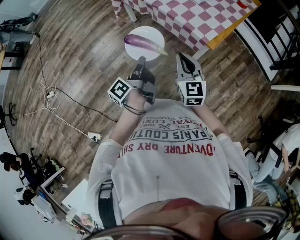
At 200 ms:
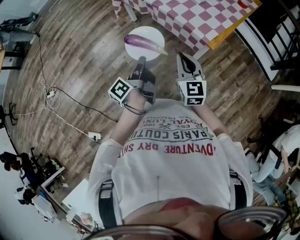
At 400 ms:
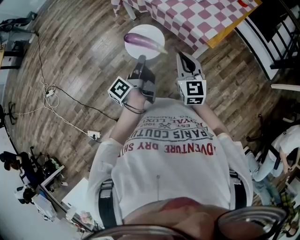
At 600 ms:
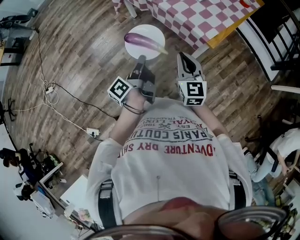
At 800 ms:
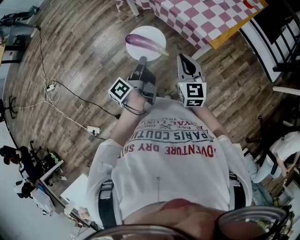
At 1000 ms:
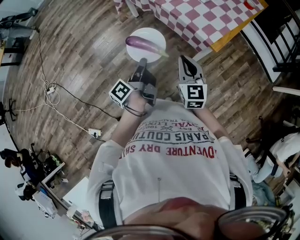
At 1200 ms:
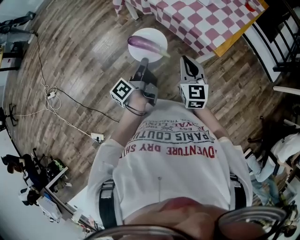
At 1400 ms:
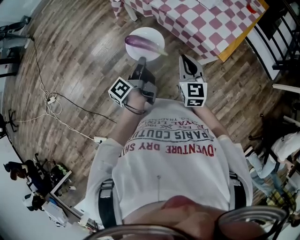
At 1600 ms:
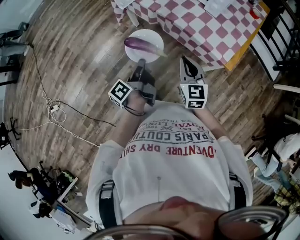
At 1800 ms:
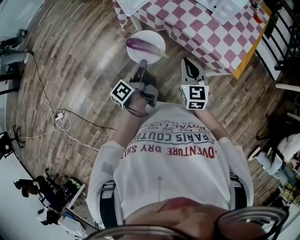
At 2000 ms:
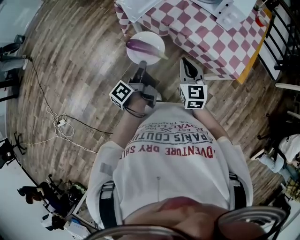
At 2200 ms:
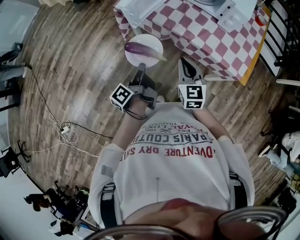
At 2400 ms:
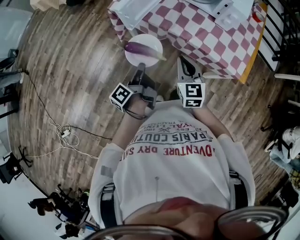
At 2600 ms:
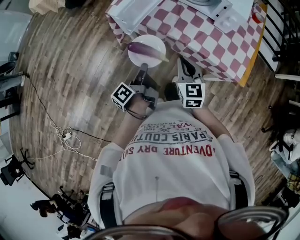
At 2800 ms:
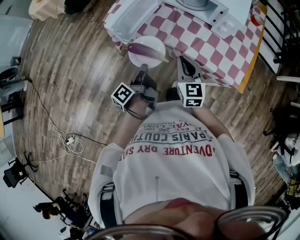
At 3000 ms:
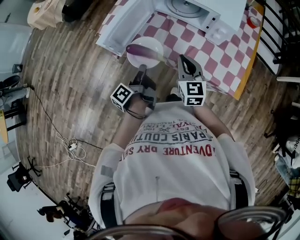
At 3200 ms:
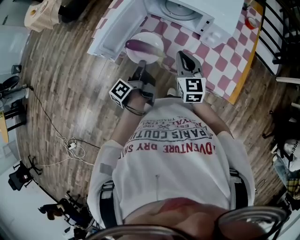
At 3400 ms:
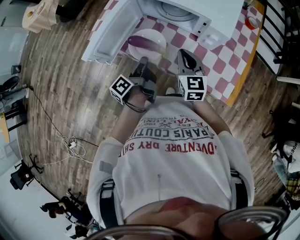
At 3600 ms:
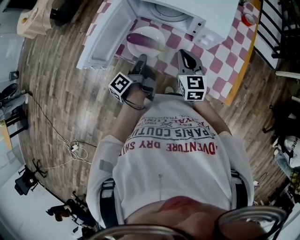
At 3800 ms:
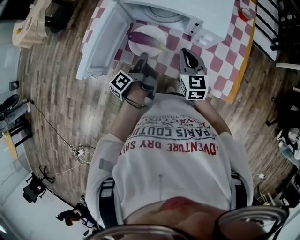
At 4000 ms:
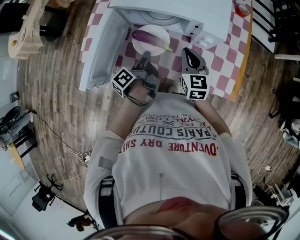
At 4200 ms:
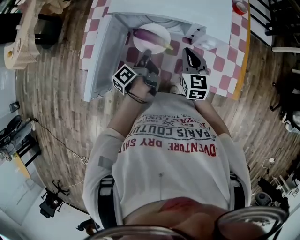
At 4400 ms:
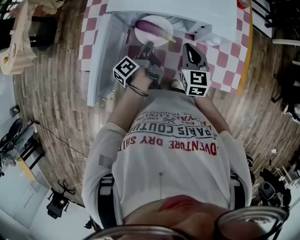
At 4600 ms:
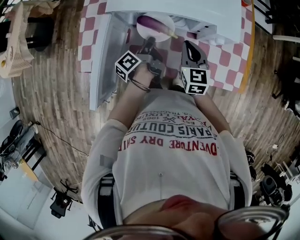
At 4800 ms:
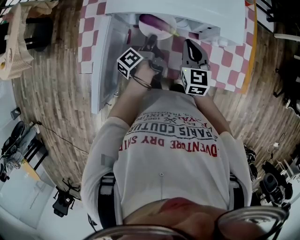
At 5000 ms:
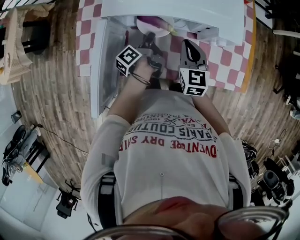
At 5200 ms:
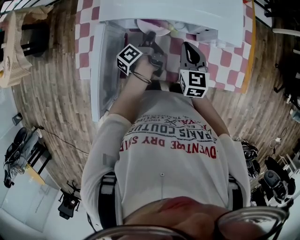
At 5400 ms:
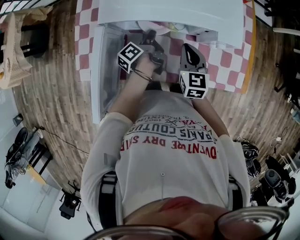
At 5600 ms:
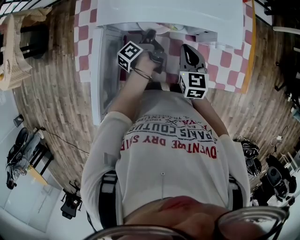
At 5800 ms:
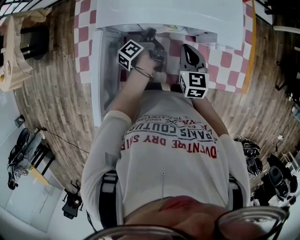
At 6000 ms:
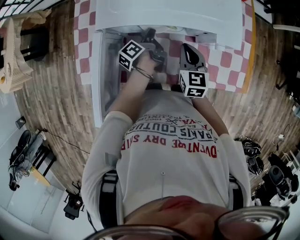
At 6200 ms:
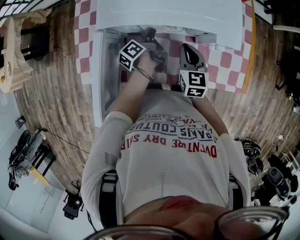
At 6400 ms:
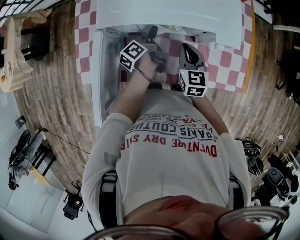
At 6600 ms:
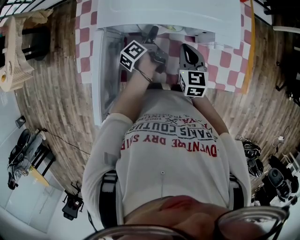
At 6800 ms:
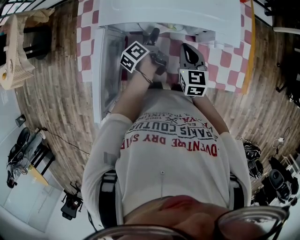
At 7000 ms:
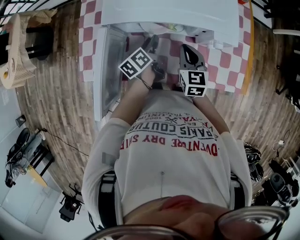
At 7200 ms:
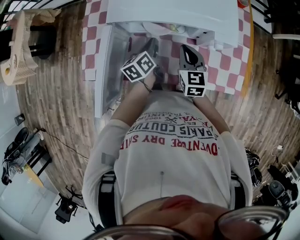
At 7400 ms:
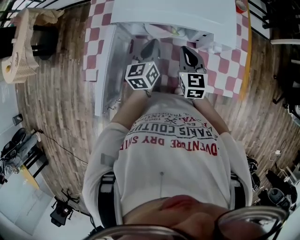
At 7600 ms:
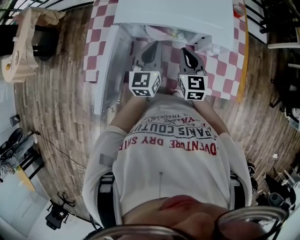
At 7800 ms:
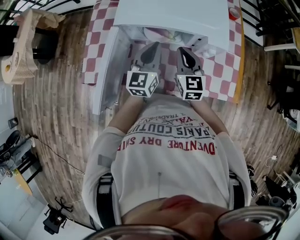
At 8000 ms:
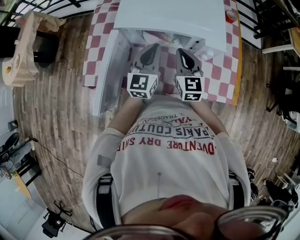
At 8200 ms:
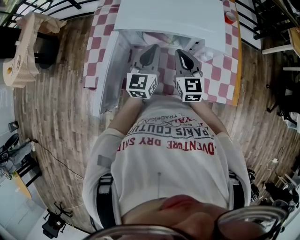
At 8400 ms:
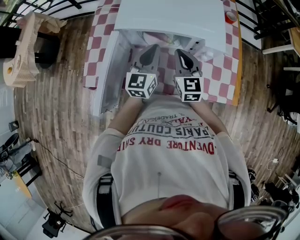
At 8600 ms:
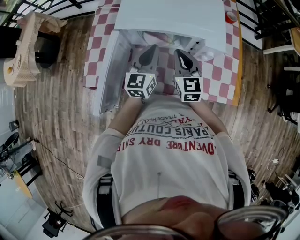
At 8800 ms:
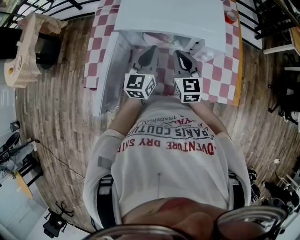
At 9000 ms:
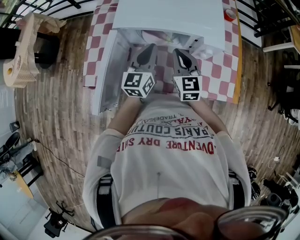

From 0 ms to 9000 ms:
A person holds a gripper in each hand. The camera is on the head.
From 0 ms to 1600 ms: The right gripper moves roughly 20 cm.
From 1600 ms to 3000 ms: The right gripper changes place by roughly 25 cm.
From 3000 ms to 4400 ms: The right gripper ends up approximately 20 cm from where it was, and rotates some 20 degrees.
From 4400 ms to 6000 ms: The right gripper ends up approximately 5 cm from where it was.
From 6000 ms to 7600 ms: The right gripper goes approximately 5 cm upward.

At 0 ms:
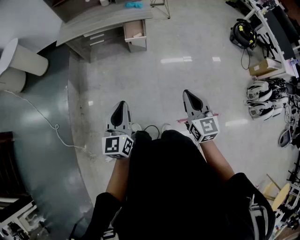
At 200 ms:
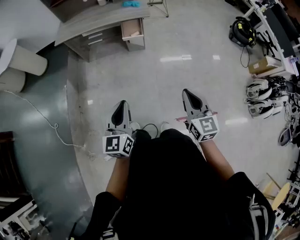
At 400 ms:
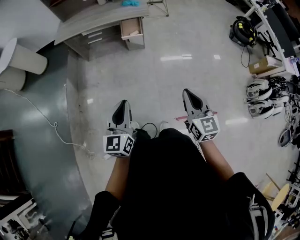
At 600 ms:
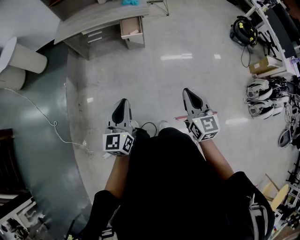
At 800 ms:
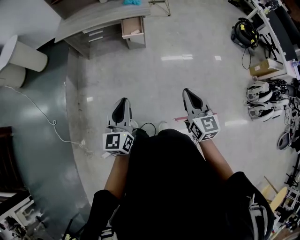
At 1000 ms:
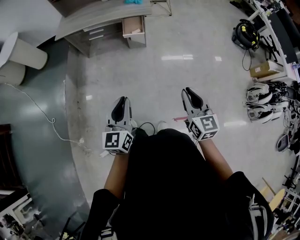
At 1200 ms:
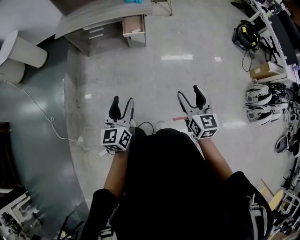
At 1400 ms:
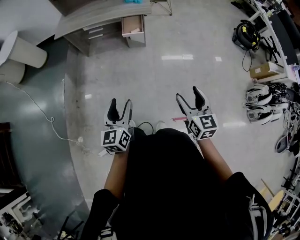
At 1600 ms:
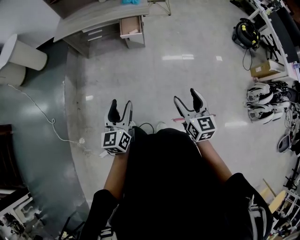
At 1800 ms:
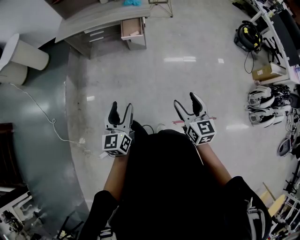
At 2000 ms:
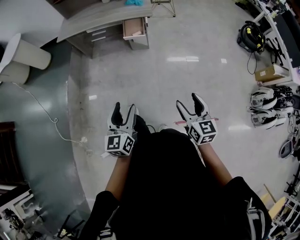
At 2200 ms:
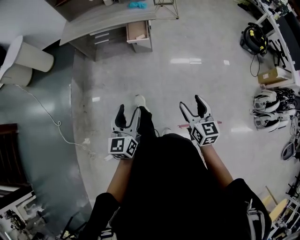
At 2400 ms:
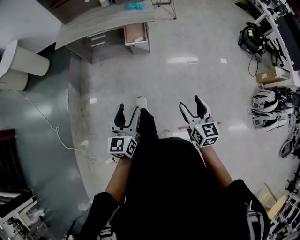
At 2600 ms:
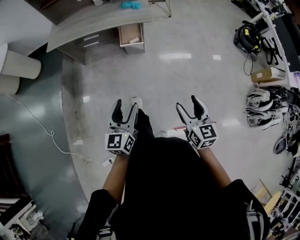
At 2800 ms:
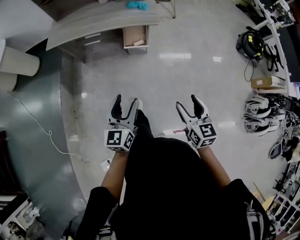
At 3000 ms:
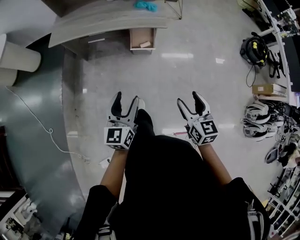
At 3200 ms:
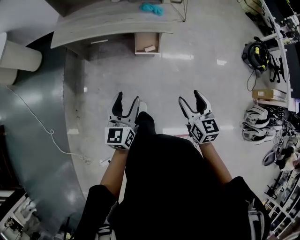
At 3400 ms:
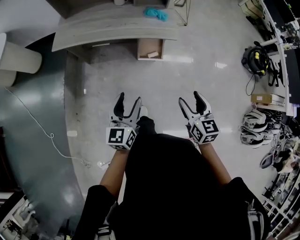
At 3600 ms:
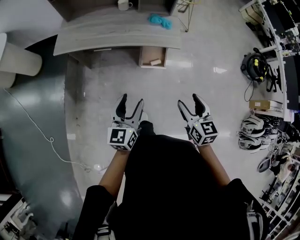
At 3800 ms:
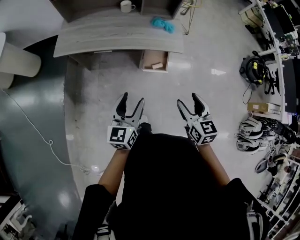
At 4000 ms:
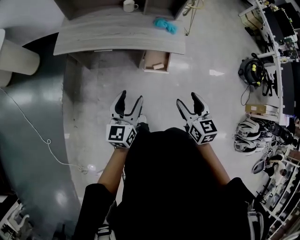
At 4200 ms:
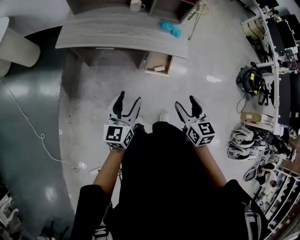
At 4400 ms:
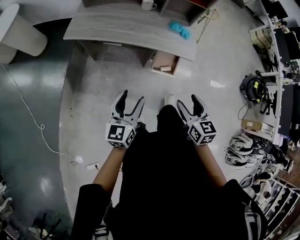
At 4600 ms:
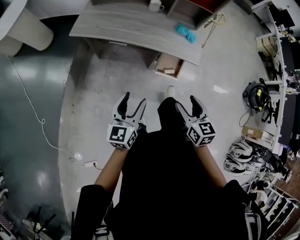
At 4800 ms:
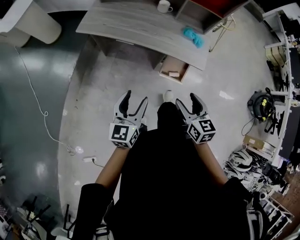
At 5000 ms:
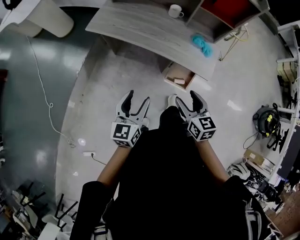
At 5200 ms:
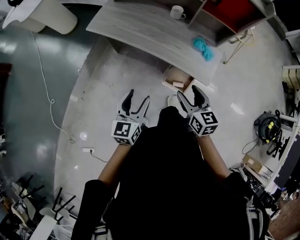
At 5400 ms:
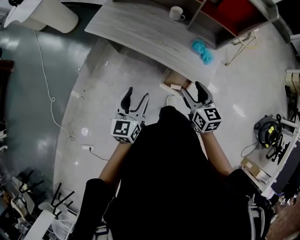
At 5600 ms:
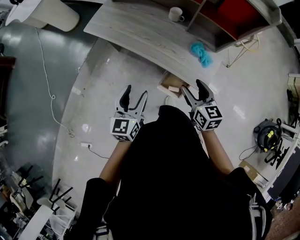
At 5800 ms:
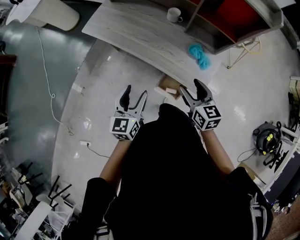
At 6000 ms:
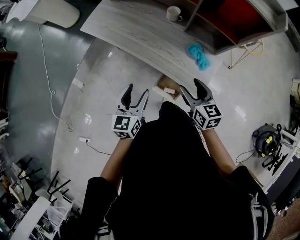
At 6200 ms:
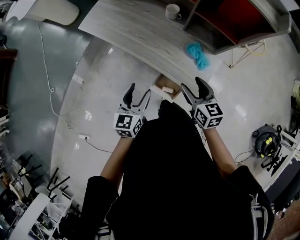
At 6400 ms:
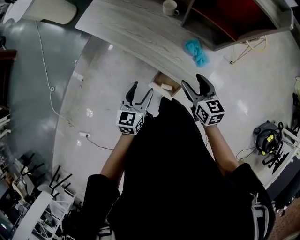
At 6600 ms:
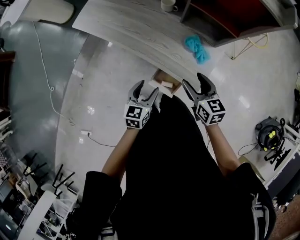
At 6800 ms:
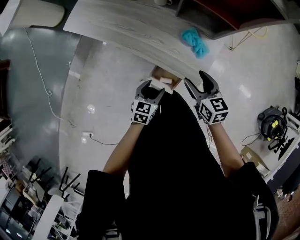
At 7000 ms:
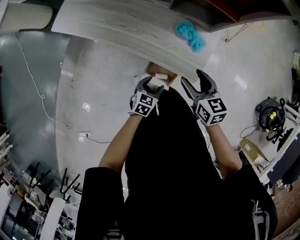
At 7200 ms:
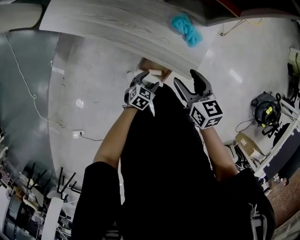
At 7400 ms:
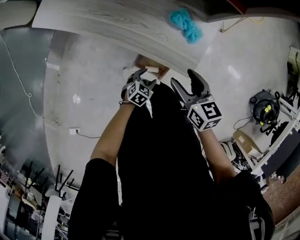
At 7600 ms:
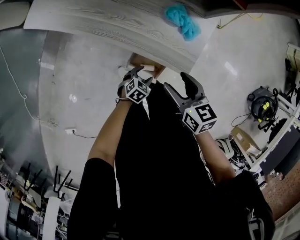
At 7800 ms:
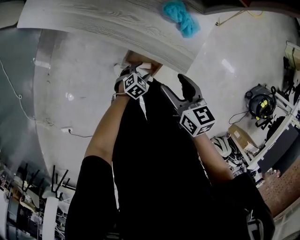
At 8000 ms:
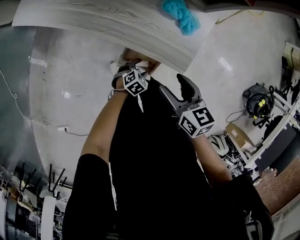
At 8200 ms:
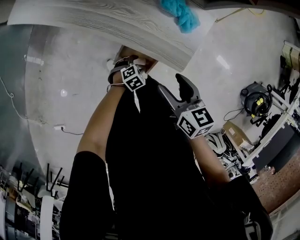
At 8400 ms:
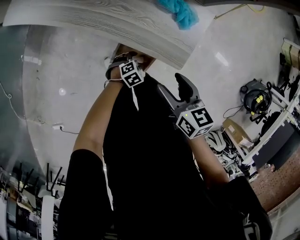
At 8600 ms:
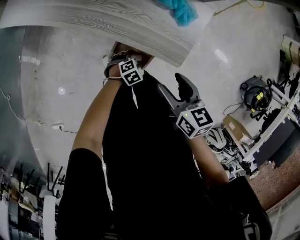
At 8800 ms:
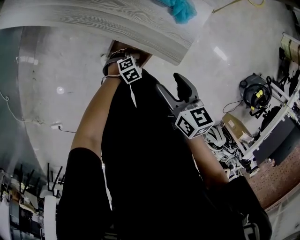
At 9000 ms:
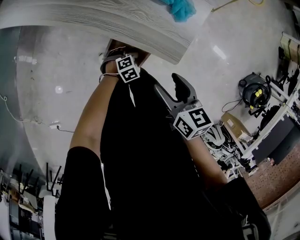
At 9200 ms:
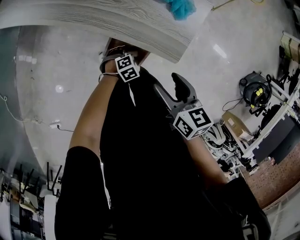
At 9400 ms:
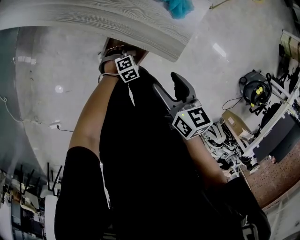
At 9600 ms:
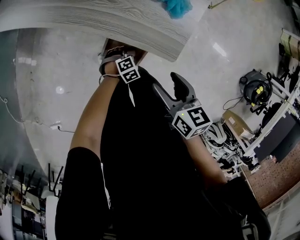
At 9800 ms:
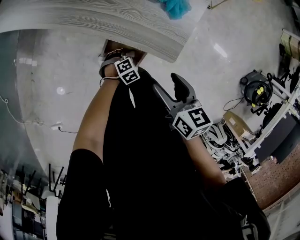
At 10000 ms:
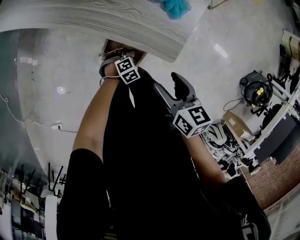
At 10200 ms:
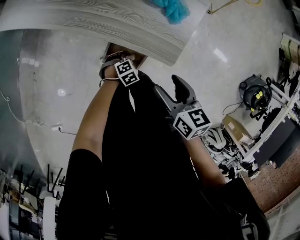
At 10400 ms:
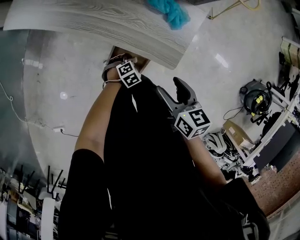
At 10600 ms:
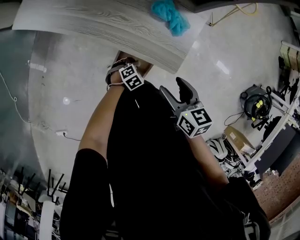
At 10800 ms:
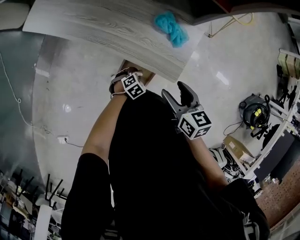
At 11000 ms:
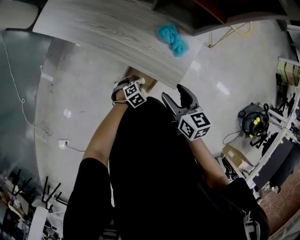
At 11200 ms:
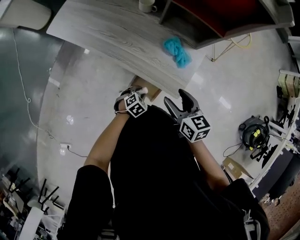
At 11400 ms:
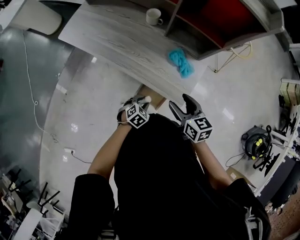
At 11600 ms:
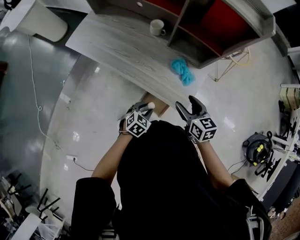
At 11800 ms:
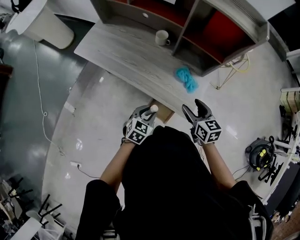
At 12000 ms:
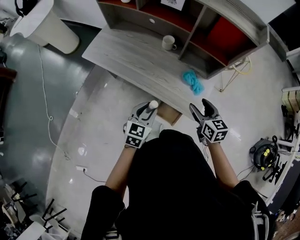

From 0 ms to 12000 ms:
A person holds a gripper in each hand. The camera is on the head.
From 0 ms to 1600 ms: Both grippers move to the right and downward, roughly 10 cm. The right gripper opens its fingers. The left gripper opens up.
From 1600 ms to 3000 ms: The two grippers go roughly 35 cm forward.
From 3000 ms to 4400 ms: The grippers both shift forward and to the left by about 25 cm.
From 4400 ms to 6000 ms: The right gripper changes place by roughly 40 cm, and swivels roughly 30 degrees; the left gripper shifts by some 30 cm, and turns by some 30 degrees.
From 6000 ms to 7600 ms: The left gripper heads downward and to the right, covering approximately 40 cm, and angles its fingers downward, by some 40 degrees, while the right gripper heads downward, covering about 15 cm.
From 7600 ms to 9000 ms: The right gripper goes some 5 cm downward. The left gripper moves downward, some 10 cm, and swivels roughly 30 degrees.
From 9000 ms to 10400 ms: The left gripper closes.
From 10400 ms to 12000 ms: The right gripper travels upward by approximately 20 cm, and rotates approximately 20 degrees, while the left gripper is displaced upward by roughly 50 cm, and angles its fingers upward, by some 50 degrees.

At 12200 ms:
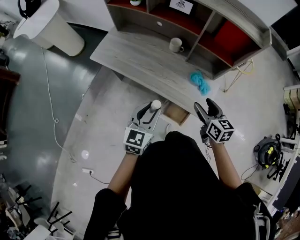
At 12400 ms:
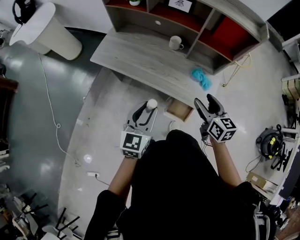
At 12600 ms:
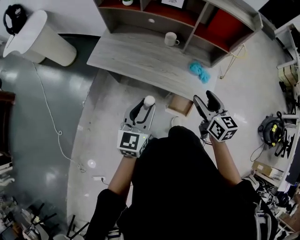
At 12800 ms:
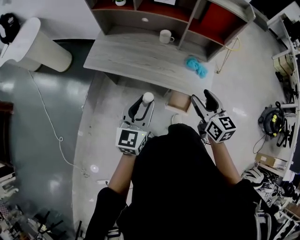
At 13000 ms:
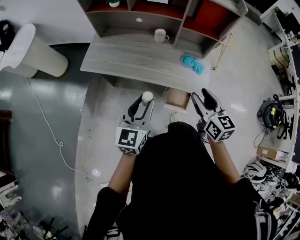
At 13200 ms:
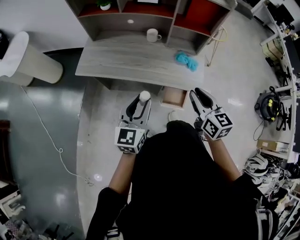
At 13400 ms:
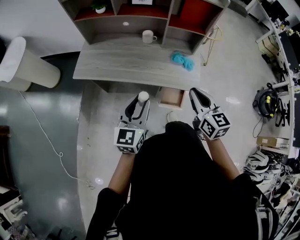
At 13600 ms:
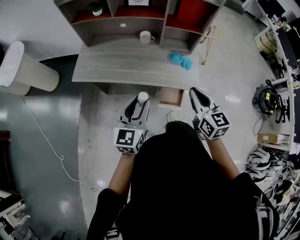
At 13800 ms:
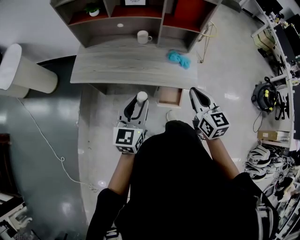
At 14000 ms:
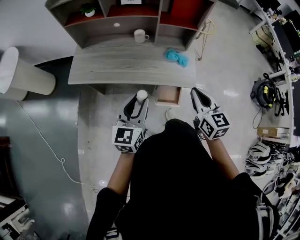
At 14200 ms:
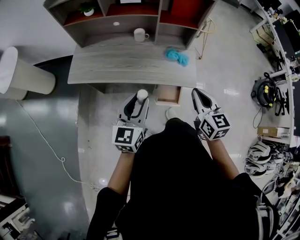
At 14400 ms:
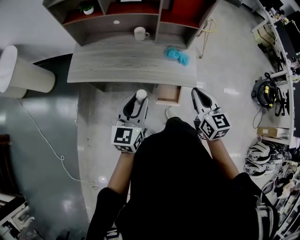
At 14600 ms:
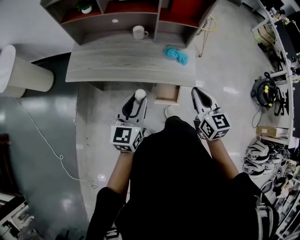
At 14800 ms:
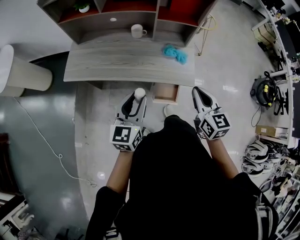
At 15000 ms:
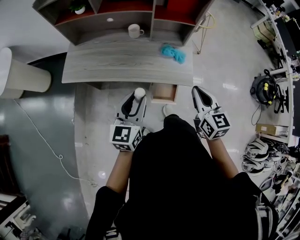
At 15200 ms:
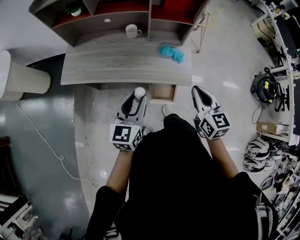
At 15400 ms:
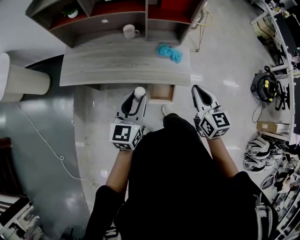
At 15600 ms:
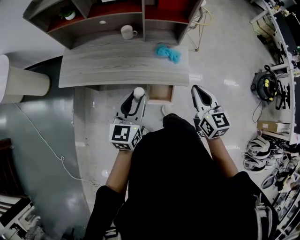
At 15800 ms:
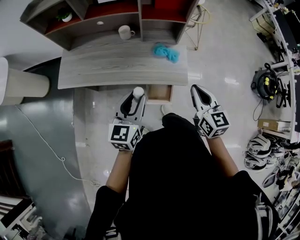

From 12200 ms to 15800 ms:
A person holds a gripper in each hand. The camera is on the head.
From 12200 ms to 14000 ms: The left gripper moves to the left, upward and backward, approximately 10 cm. The right gripper moves backward and upward, about 15 cm, turns by approximately 30 degrees, and closes up.
From 14000 ms to 15800 ms: The grippers both shift to the right and forward by approximately 10 cm.
